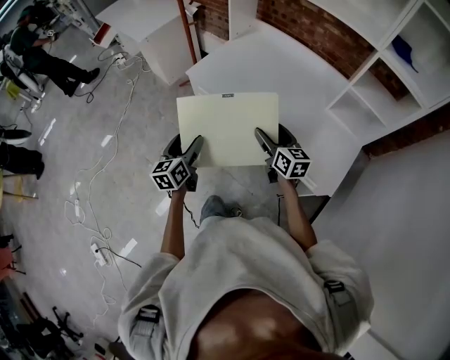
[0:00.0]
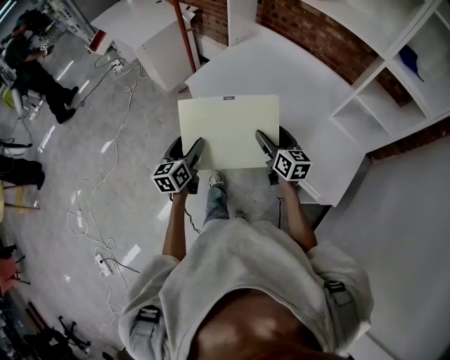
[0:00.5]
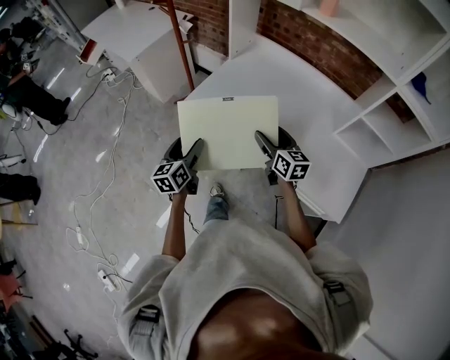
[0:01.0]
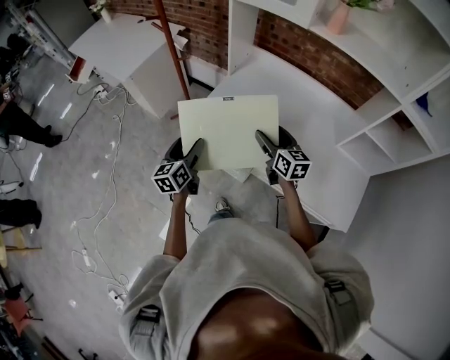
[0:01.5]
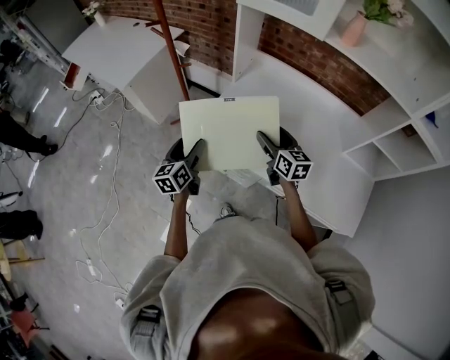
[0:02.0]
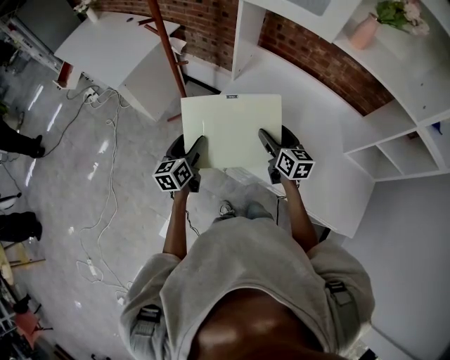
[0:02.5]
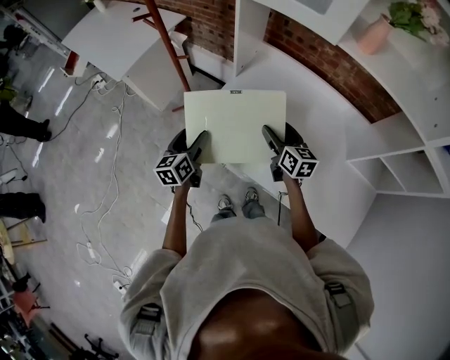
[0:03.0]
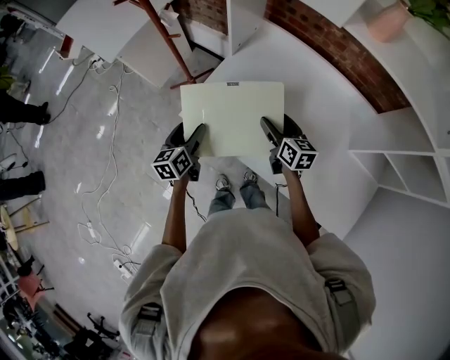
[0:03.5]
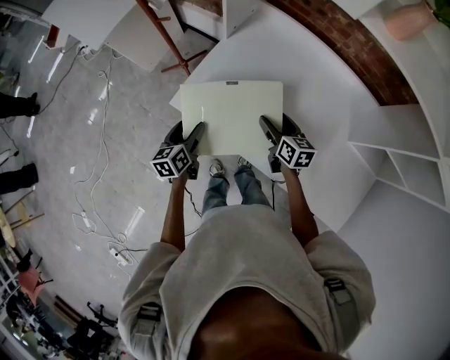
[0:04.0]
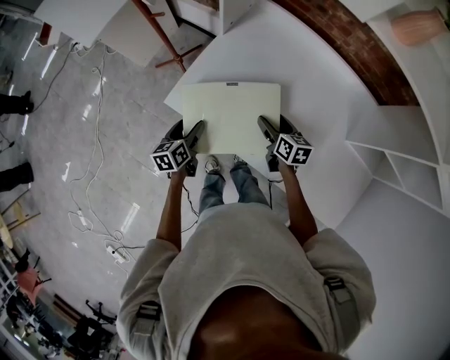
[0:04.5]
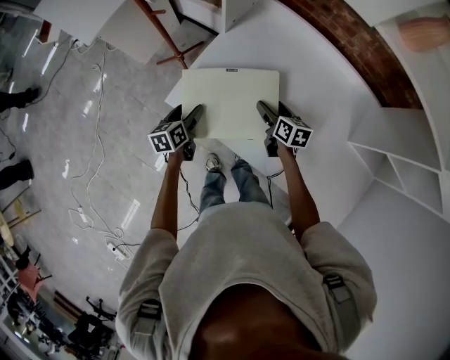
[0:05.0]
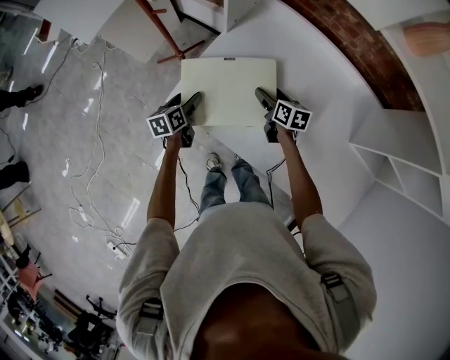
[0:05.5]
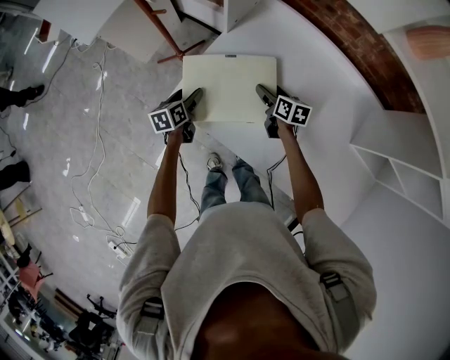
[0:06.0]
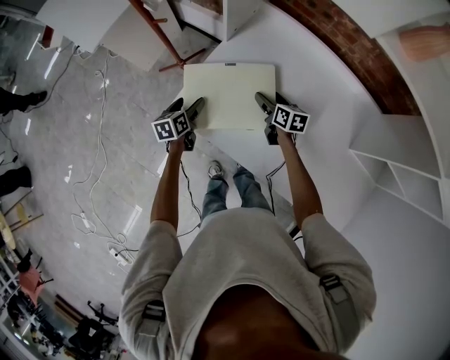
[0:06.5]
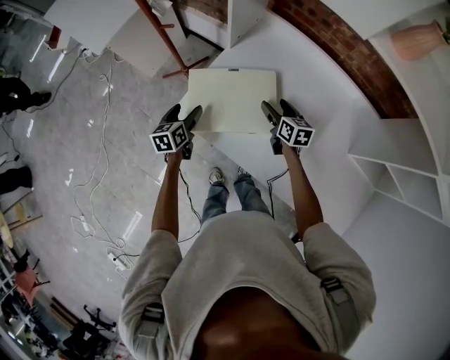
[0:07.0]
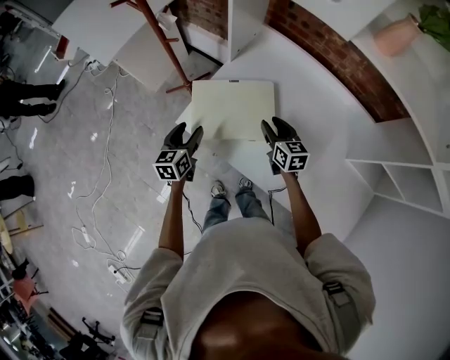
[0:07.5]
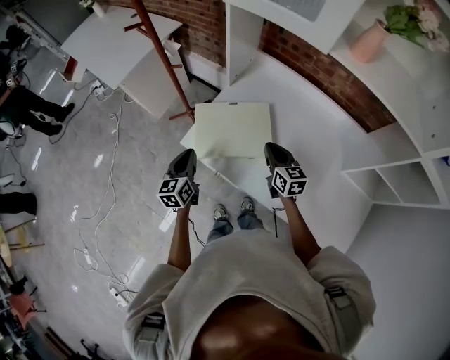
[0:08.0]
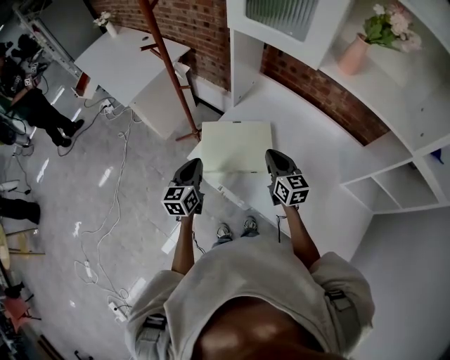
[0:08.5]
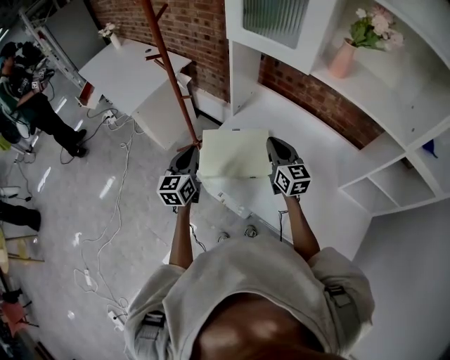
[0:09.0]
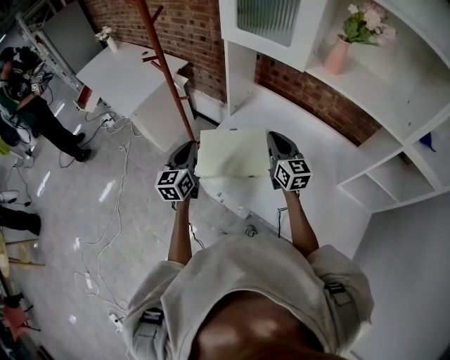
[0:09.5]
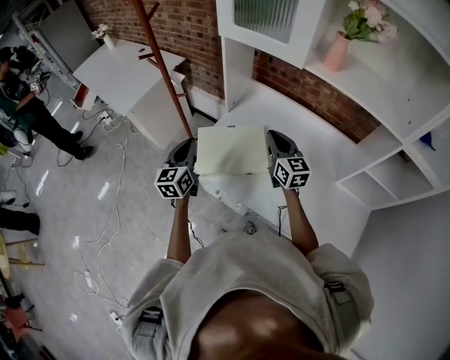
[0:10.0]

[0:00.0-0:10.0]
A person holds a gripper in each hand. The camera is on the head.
0:00.0 to 0:02.0: The two grippers go about 35 cm forward.
0:02.0 to 0:04.0: Both grippers move downward and to the right, roughly 15 cm.
0:04.0 to 0:06.0: The grippers both shift forward and downward by about 15 cm.
0:06.0 to 0:08.0: Both grippers move upward and backward, roughly 20 cm. The right gripper swivels roughly 30 degrees, and closes its fingers, while the left gripper swivels some 30 degrees, and closes its fingers.
0:08.0 to 0:10.0: Both grippers move upward, about 15 cm.

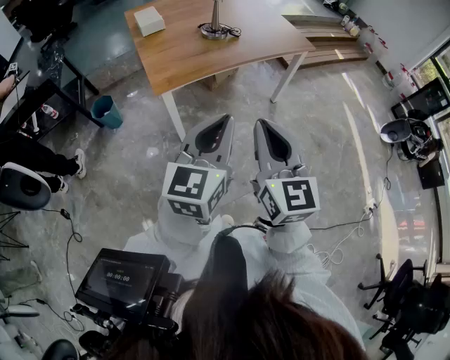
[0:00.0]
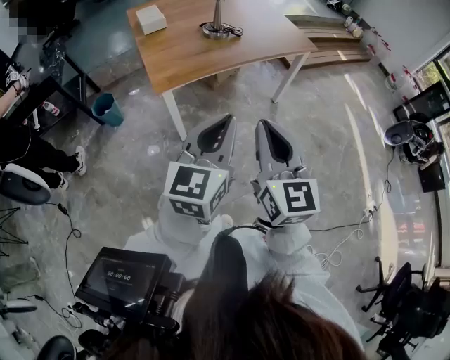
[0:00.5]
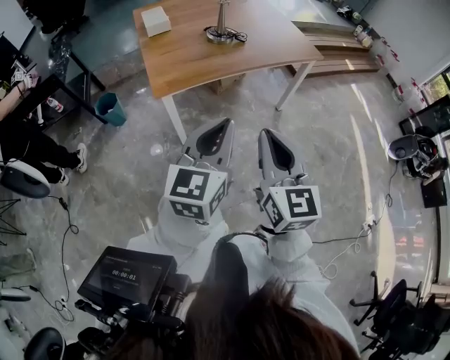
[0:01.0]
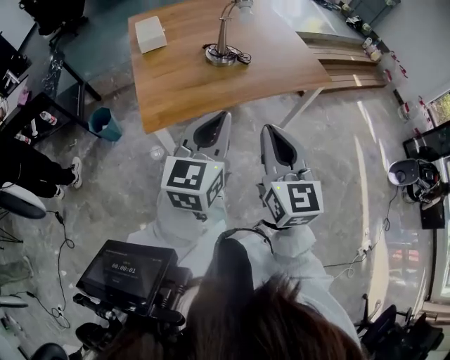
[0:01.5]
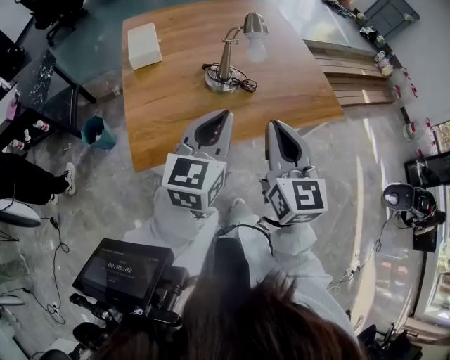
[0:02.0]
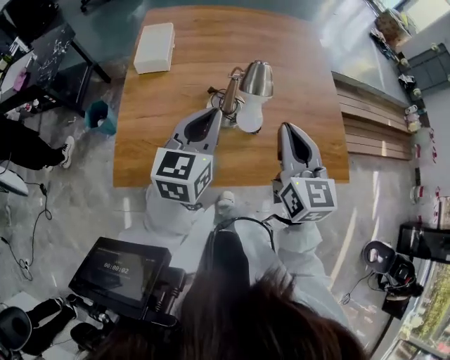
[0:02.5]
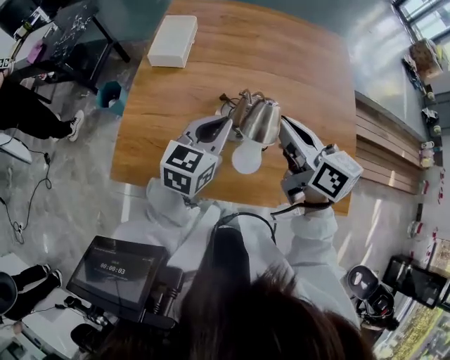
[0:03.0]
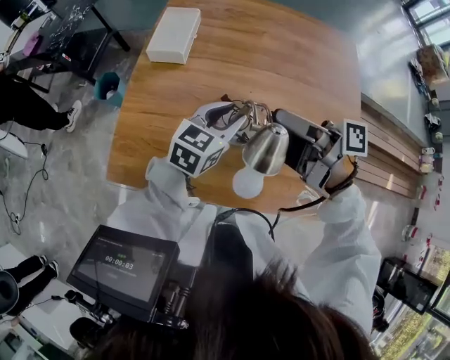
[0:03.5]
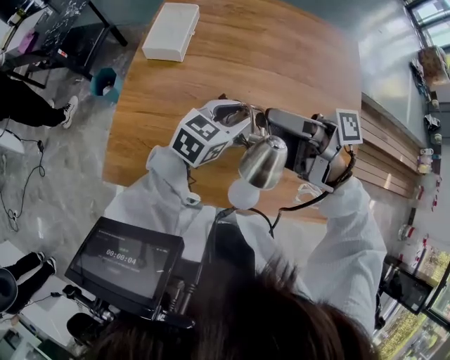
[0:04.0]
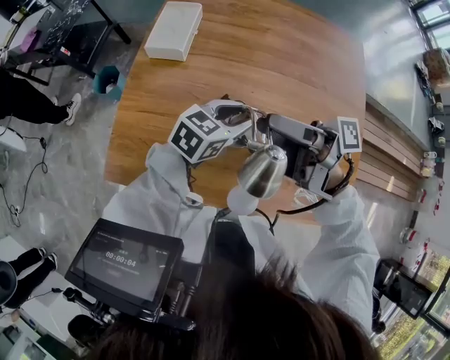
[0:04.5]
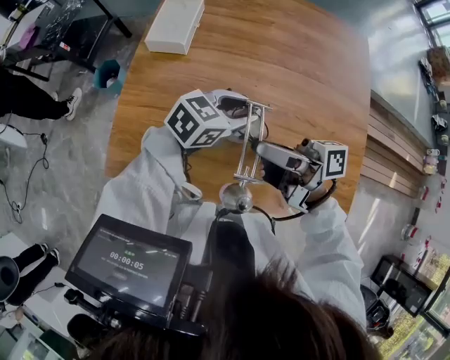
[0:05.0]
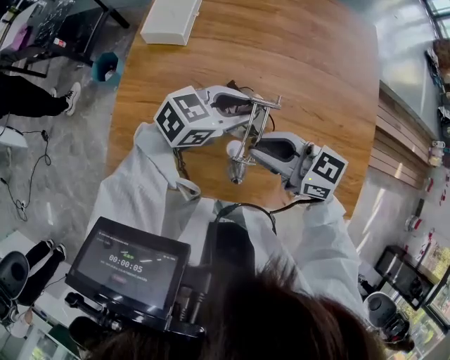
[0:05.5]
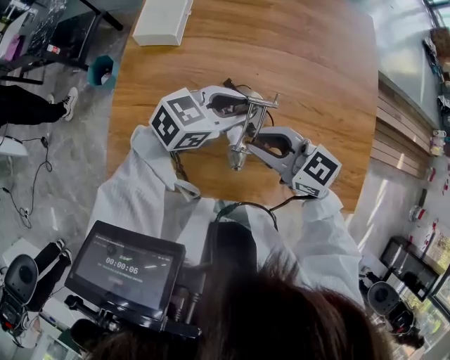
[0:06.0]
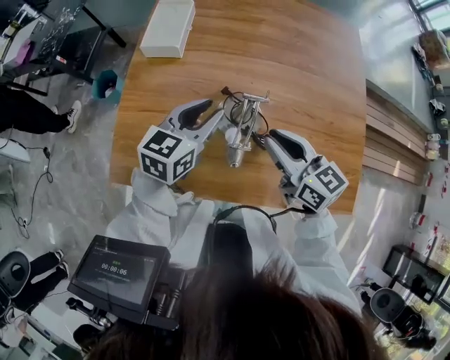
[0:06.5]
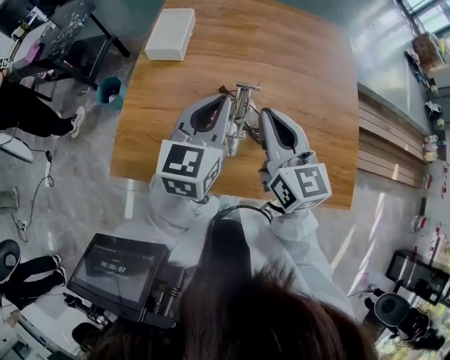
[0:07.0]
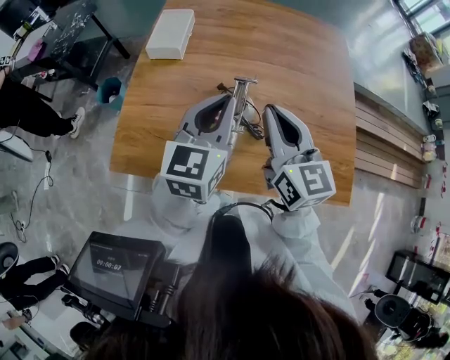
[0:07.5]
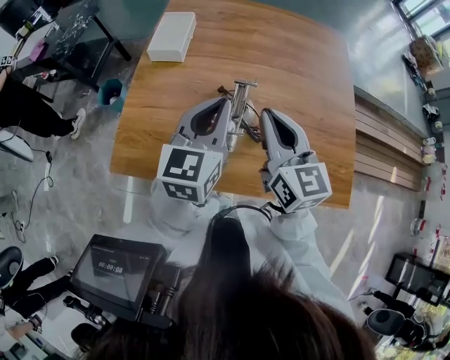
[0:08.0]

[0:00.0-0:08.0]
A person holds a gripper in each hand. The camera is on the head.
0:00.0 to 0:02.0: The pair of grippers is taken forward, approximately 40 cm.
0:02.0 to 0:04.0: The left gripper shifts by some 35 cm, rotates about 20 degrees, and opens up; the right gripper changes place by approximately 35 cm, changes its angle by about 120 degrees, and opens up.
0:04.0 to 0:06.0: The right gripper shifts roughly 10 cm downward, twists about 70 degrees counterclockwise, seen from behind, and closes up.
0:06.0 to 0:08.0: The grippers both shift upward by some 15 cm. The left gripper rotates approximately 50 degrees, and closes, while the right gripper changes its angle by some 50 degrees.

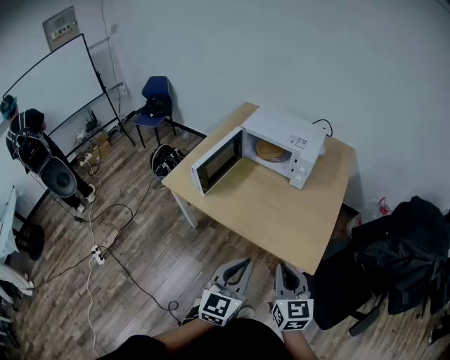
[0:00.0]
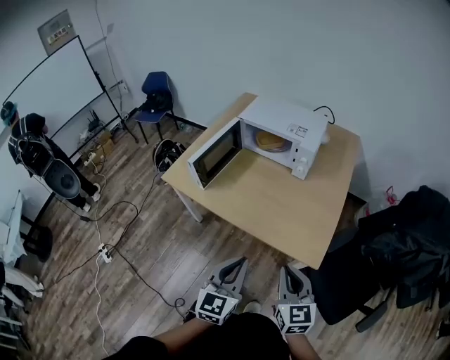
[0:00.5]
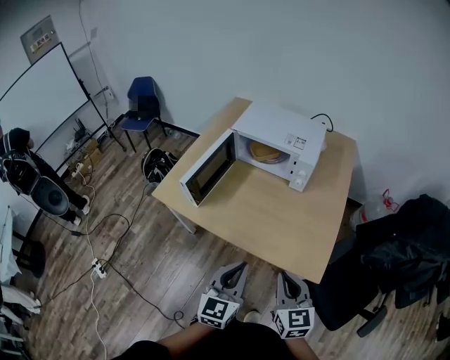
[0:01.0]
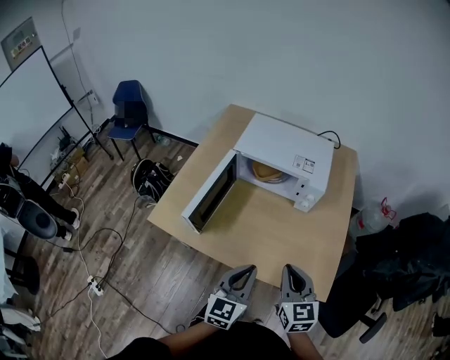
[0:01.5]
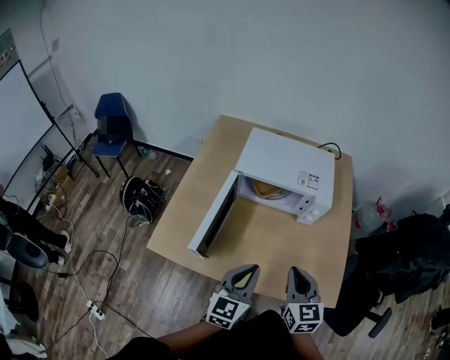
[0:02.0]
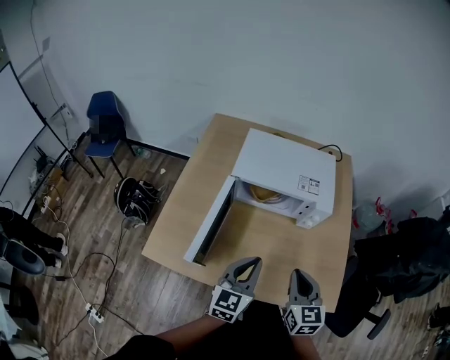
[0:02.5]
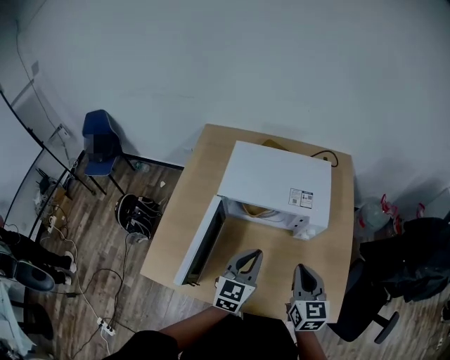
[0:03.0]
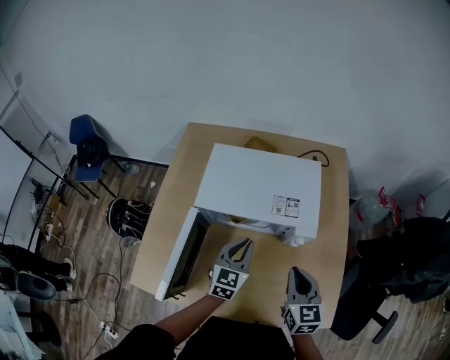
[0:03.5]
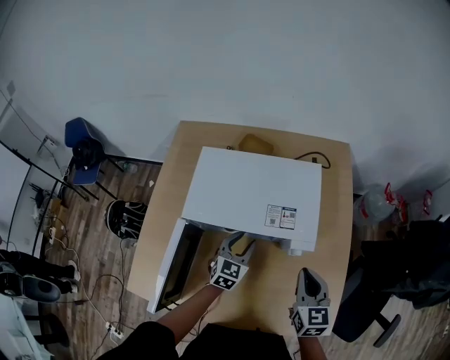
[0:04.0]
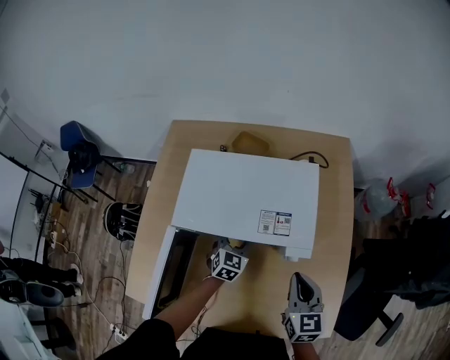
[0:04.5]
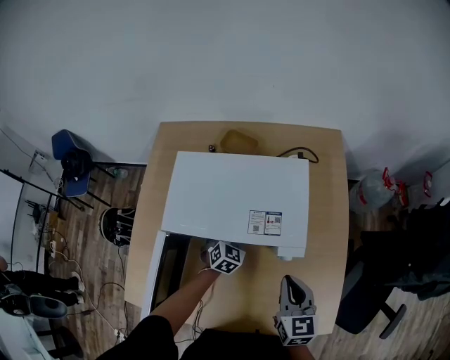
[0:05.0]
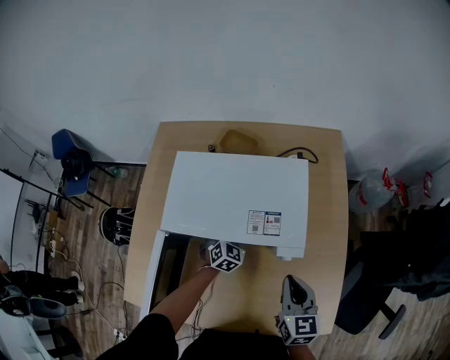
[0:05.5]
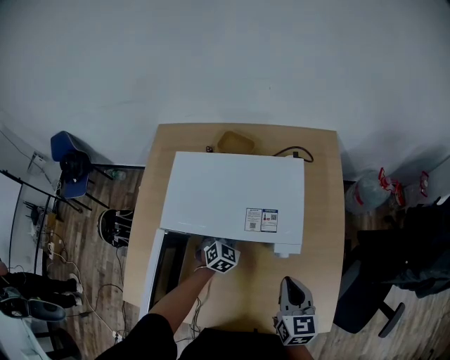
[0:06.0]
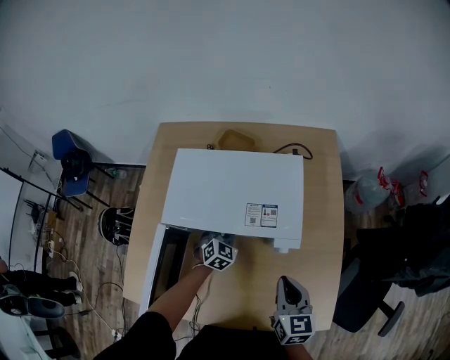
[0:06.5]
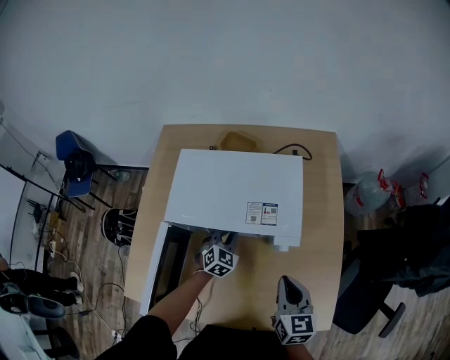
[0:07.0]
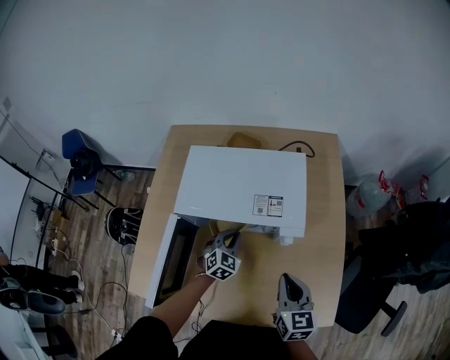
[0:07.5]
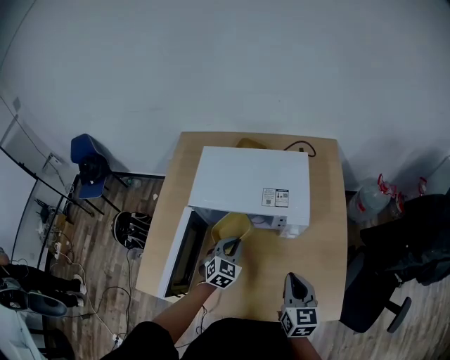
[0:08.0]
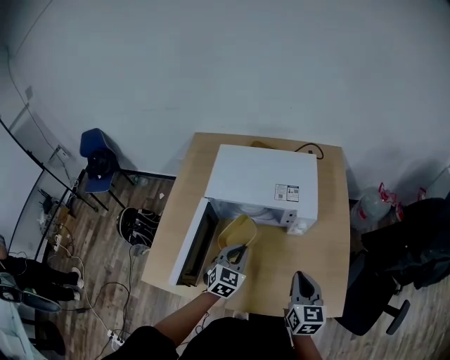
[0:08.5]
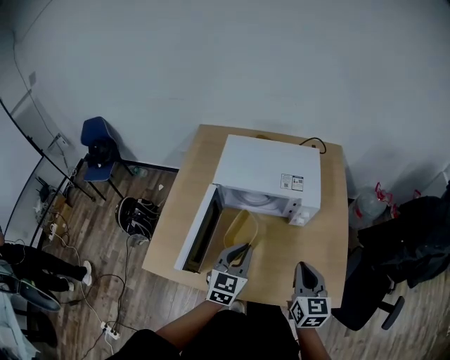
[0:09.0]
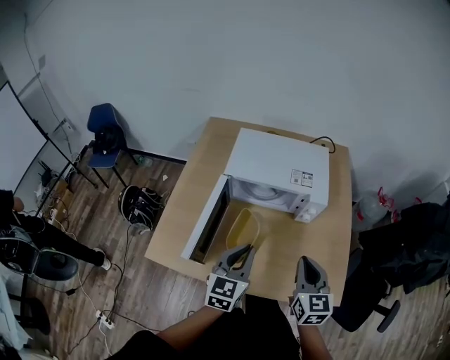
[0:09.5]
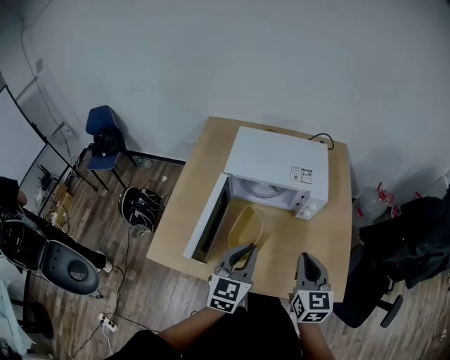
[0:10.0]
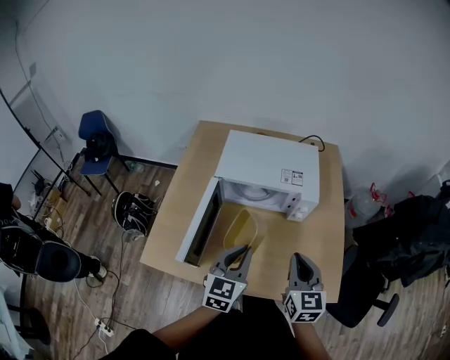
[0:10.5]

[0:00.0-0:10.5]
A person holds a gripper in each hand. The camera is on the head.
0:00.0 to 0:02.0: Both grippers move forward and to the left, approximately 30 cm.
0:02.0 to 0:04.0: The right gripper travels forward and to the right by about 25 cm. The left gripper travels forward and downward by some 35 cm, turns by approximately 20 degrees, and opens.
0:04.0 to 0:06.5: The left gripper travels downward and forward by about 10 cm, swivels roughly 20 degrees, and closes.
0:06.5 to 0:08.5: The left gripper travels backward and upward by some 25 cm. The right gripper is displaced backward by some 10 cm.
0:08.5 to 0:10.5: The left gripper shifts about 15 cm upward and backward, and rotates approximately 20 degrees; the right gripper is displaced upward by approximately 5 cm.
